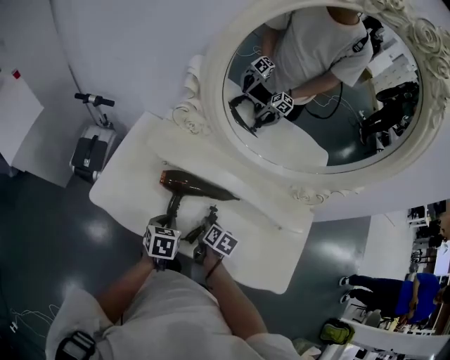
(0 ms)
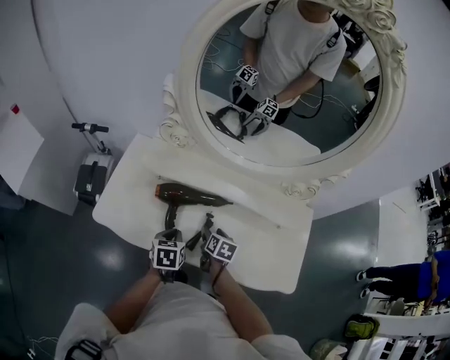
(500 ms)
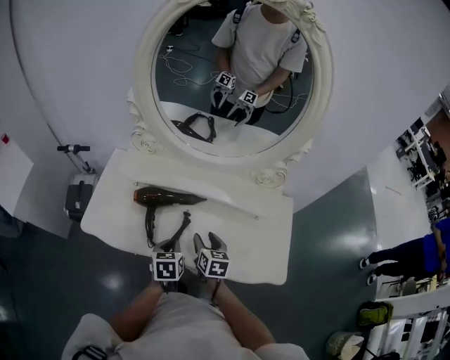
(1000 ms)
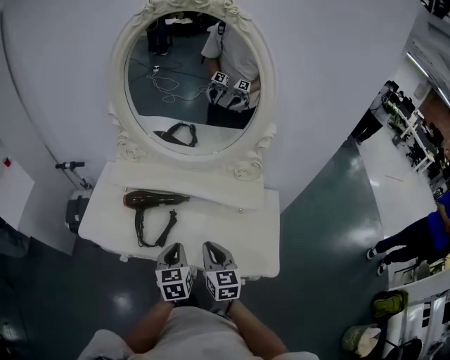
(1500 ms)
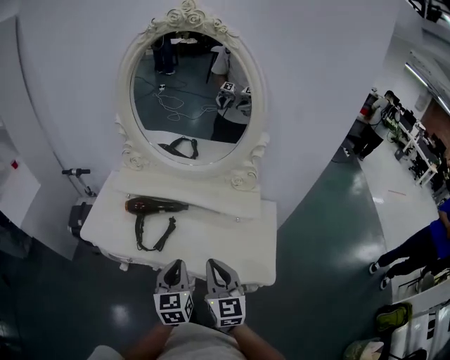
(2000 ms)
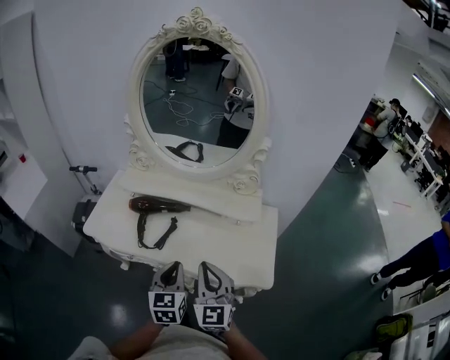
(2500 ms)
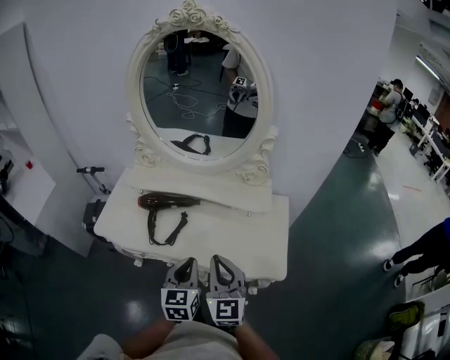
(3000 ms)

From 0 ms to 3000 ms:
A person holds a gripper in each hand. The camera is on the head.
From 0 ms to 1500 ms: The left gripper goes roughly 25 cm to the right, upward and backward, and turns by some 30 degrees; the right gripper travels upward, backward and to the right by about 30 cm, tips its fingers upward by about 30 degrees, and closes.
From 1500 ms to 3000 ms: The left gripper heads backward and upward, covering approximately 10 cm; the right gripper travels upward and backward by approximately 15 cm, and turns by roughly 30 degrees.

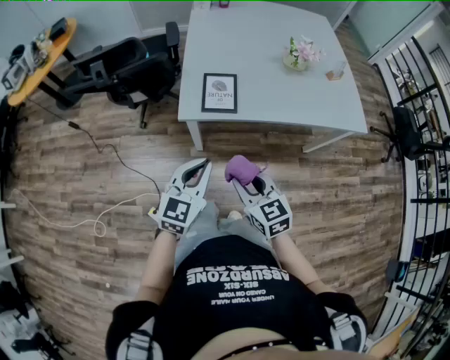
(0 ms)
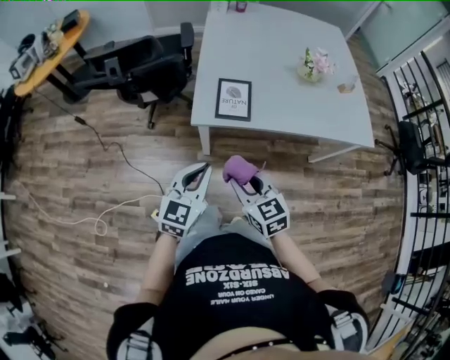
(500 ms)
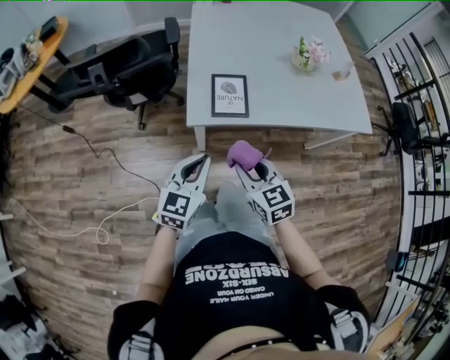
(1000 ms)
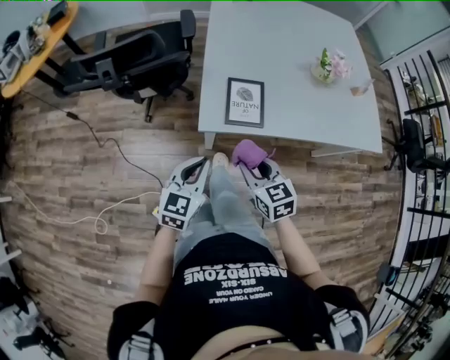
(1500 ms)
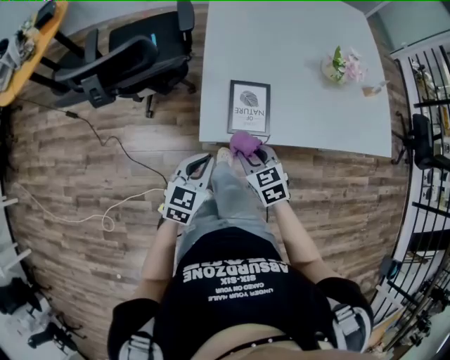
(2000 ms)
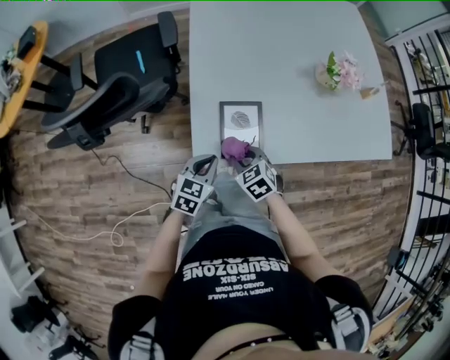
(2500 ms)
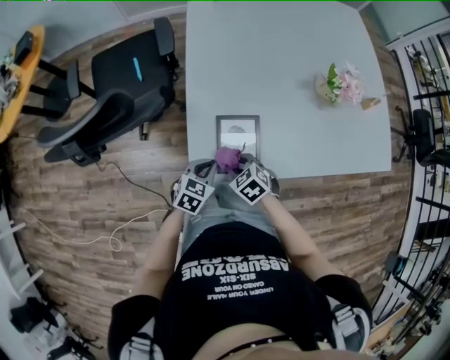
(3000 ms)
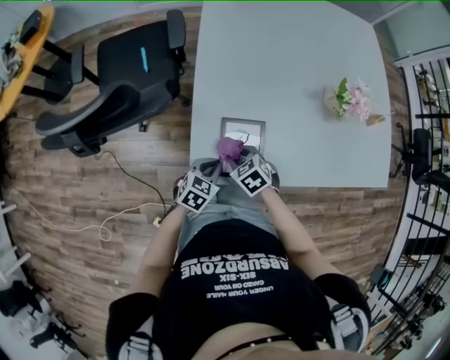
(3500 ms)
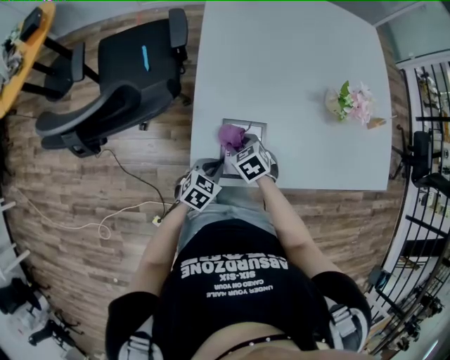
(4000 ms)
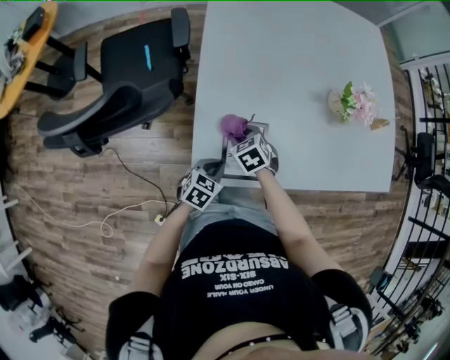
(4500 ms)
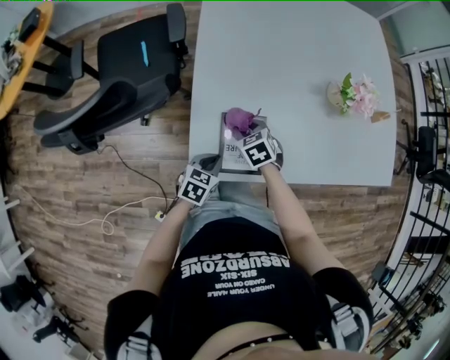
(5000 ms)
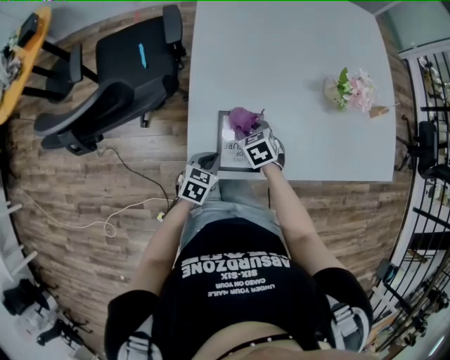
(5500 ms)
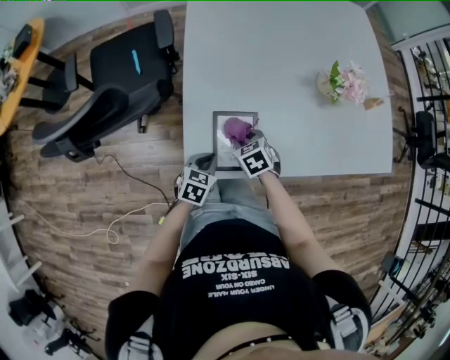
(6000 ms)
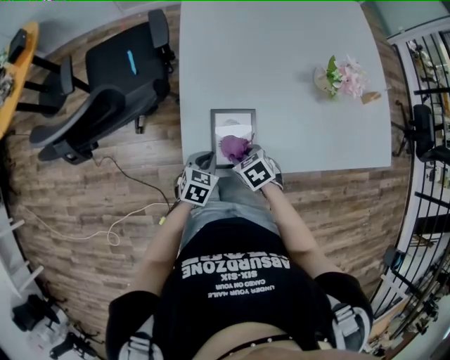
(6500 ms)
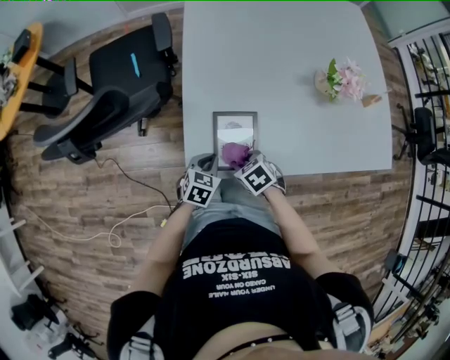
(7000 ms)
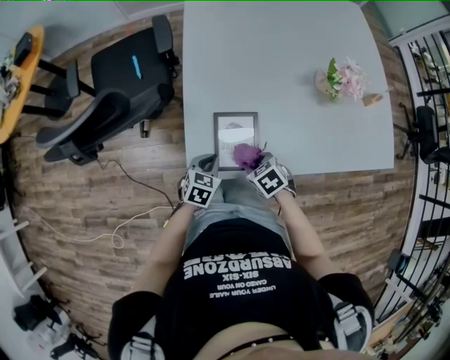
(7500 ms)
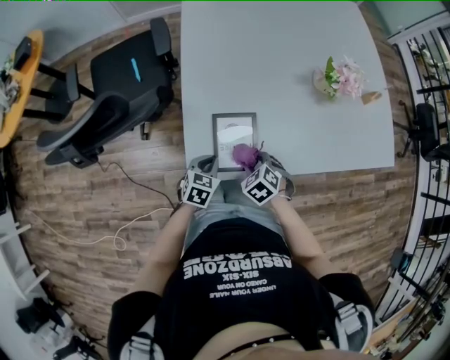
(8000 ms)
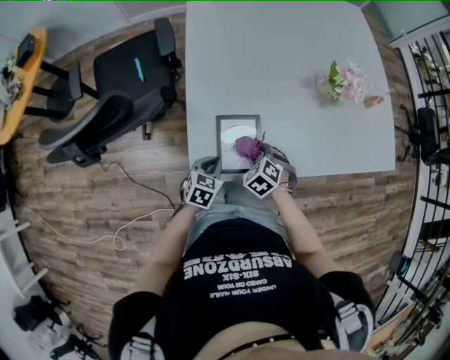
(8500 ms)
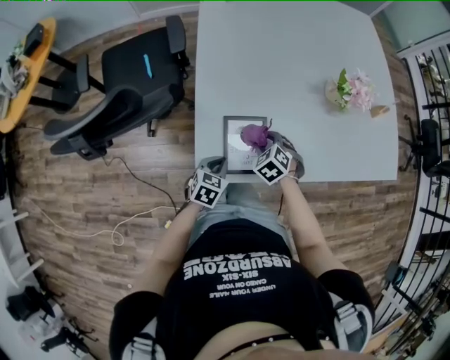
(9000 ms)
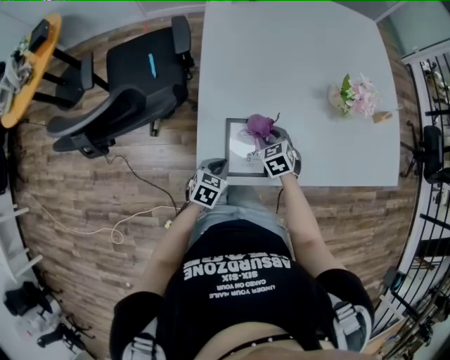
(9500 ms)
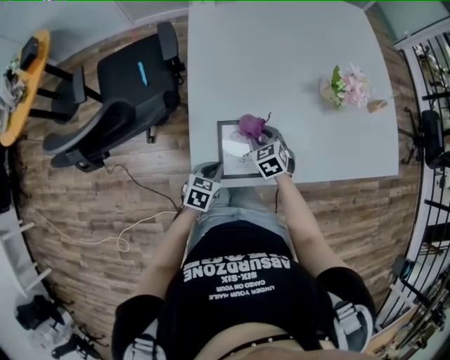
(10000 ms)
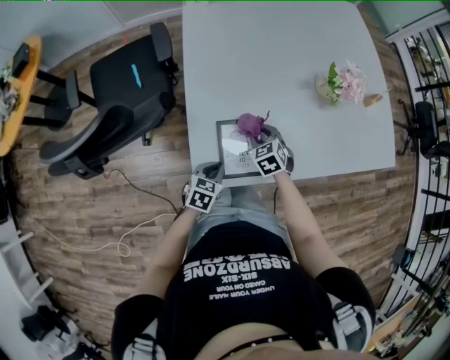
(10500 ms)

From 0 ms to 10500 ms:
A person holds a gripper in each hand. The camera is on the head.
From 0 ms to 2000 ms: The right gripper moves forward and downward, roughly 25 cm; the left gripper heads forward, downward and to the left, covering roughly 25 cm.
From 2000 ms to 4000 ms: The right gripper is displaced forward and downward by about 20 cm. Meanwhile the left gripper shifts roughly 20 cm downward, forward and to the right, and rotates about 20 degrees.
From 4000 ms to 6500 ms: The right gripper goes some 5 cm backward.
From 6500 ms to 8500 ms: The right gripper swivels some 30 degrees.
From 8500 ms to 10500 ms: The right gripper moves forward, roughly 10 cm, and changes its angle by about 20 degrees.

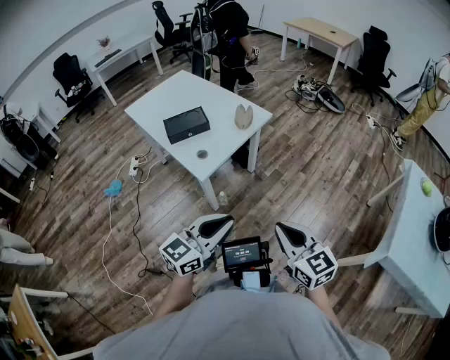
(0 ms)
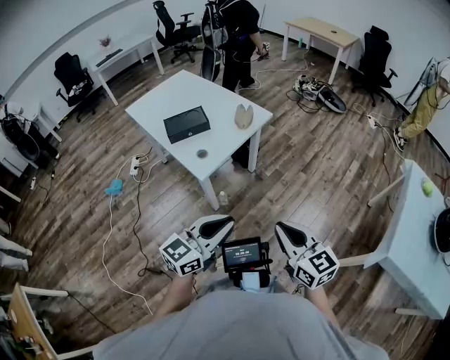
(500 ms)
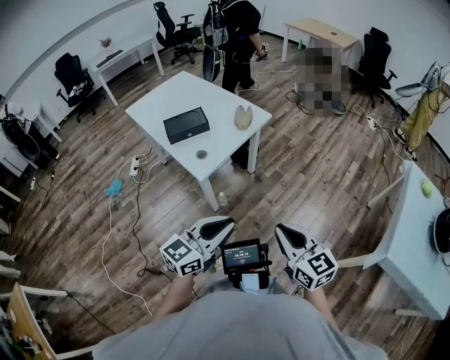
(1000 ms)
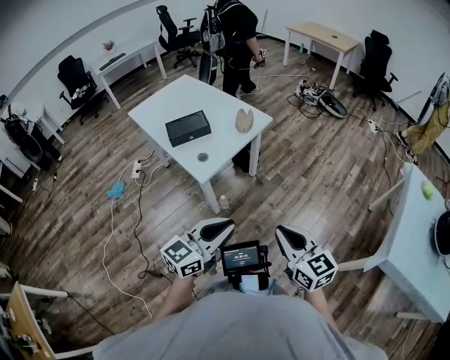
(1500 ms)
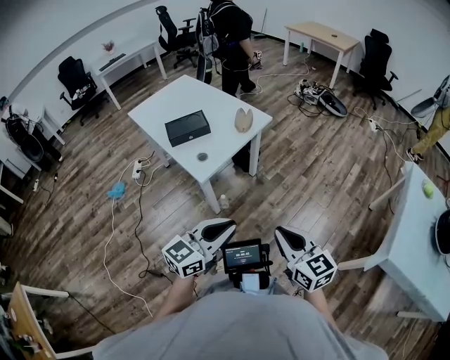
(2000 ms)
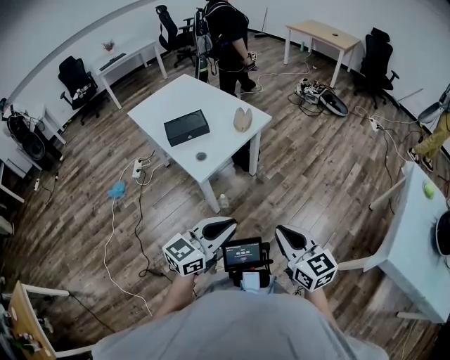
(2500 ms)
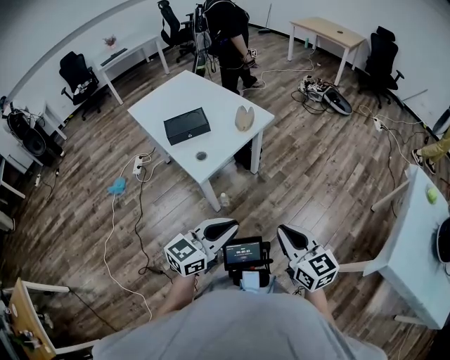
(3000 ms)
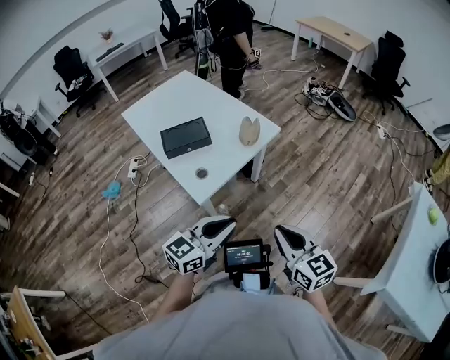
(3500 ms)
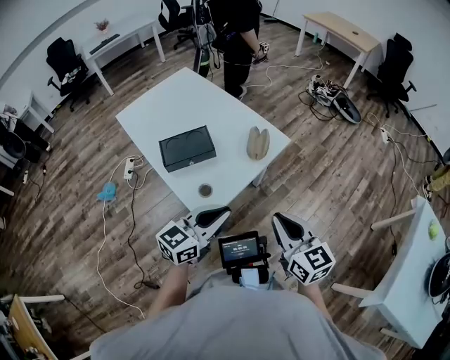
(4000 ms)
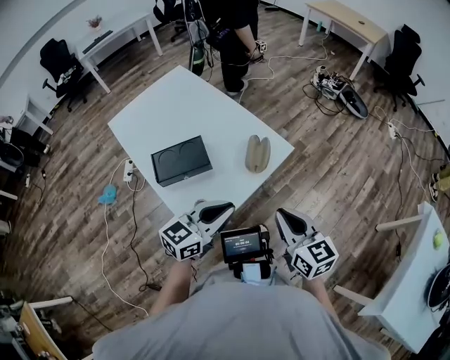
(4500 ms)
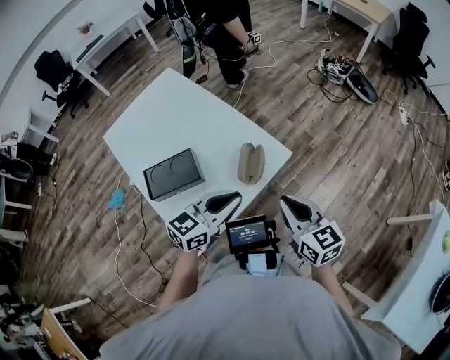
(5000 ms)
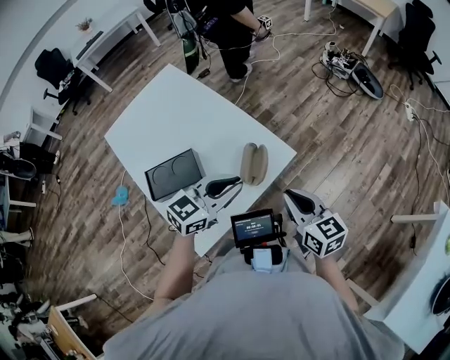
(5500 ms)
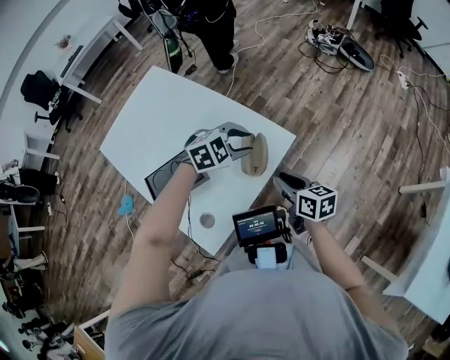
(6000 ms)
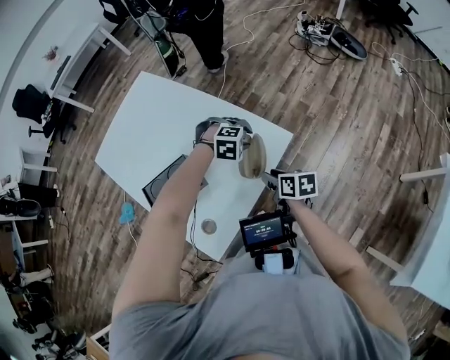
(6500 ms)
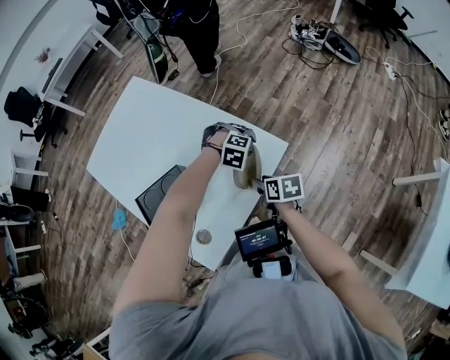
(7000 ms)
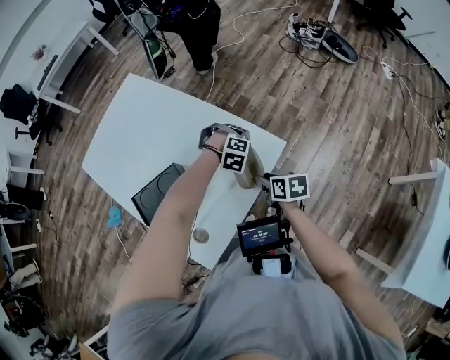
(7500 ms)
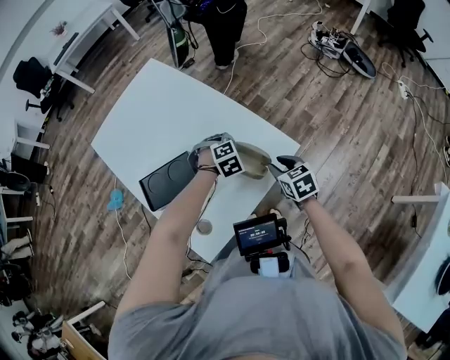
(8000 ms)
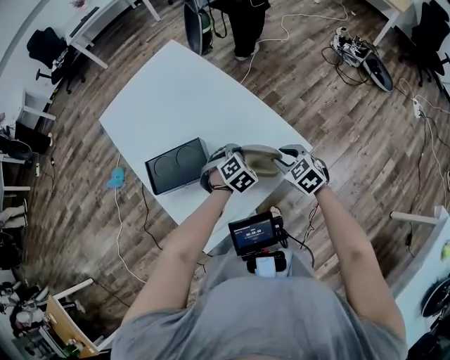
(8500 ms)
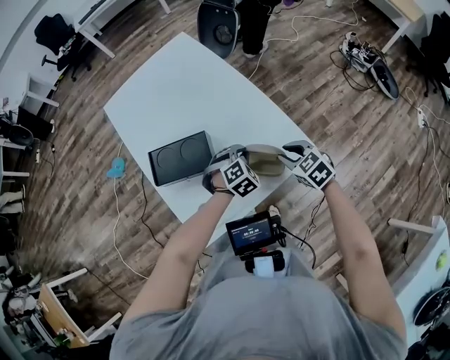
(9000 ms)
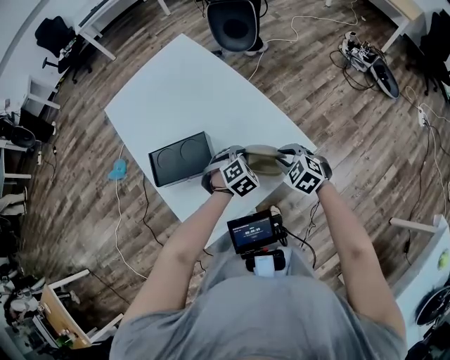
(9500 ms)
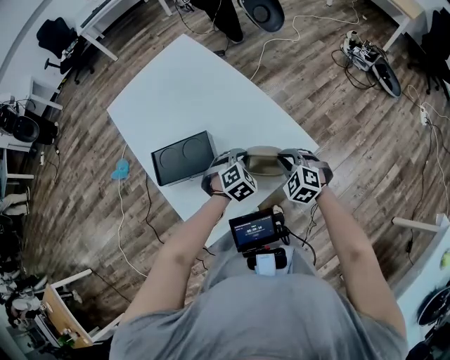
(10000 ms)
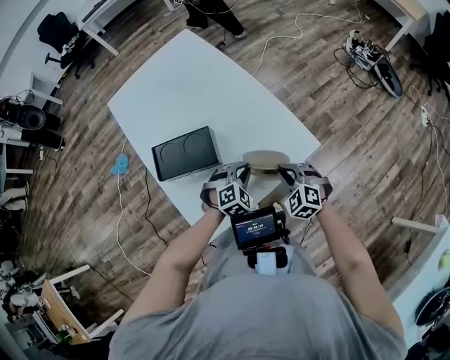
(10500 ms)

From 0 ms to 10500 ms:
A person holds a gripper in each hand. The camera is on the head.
From 0 ms to 2000 ms: There are only small adjustments of the grippers.
From 2000 ms to 4000 ms: The left gripper moves forward and to the left, some 30 cm, while the right gripper goes some 25 cm forward.
From 4000 ms to 6500 ms: The grippers both shift forward and downward by some 40 cm. The right gripper turns by about 50 degrees, and opens its fingers. The left gripper tips its fingers downward by about 70 degrees, and opens.
From 6500 ms to 8500 ms: The right gripper changes place by about 10 cm, and twists about 70 degrees counterclockwise, seen from behind; the left gripper ends up roughly 10 cm from where it was, rolls counterclockwise, seen from behind, by roughly 50 degrees, and closes.
From 8500 ms to 10500 ms: The two grippers go some 10 cm backward. The right gripper turns by about 30 degrees.

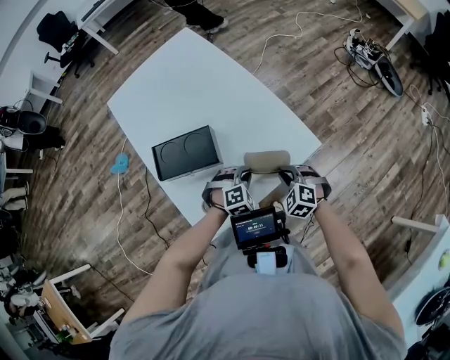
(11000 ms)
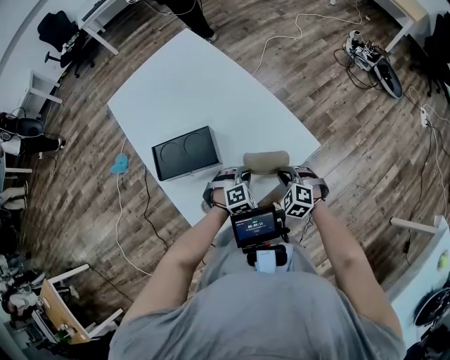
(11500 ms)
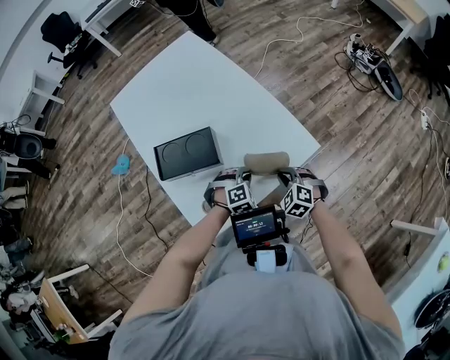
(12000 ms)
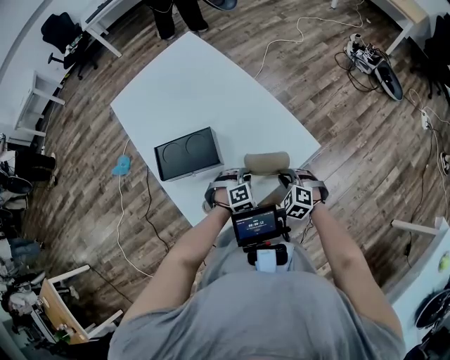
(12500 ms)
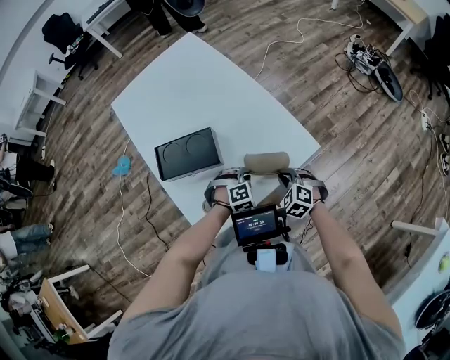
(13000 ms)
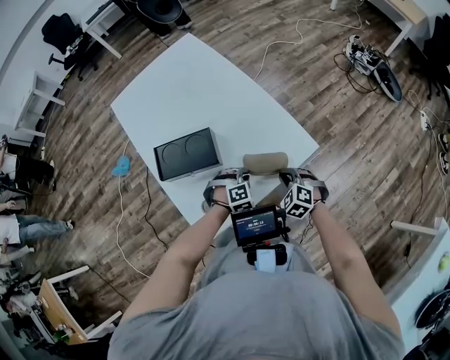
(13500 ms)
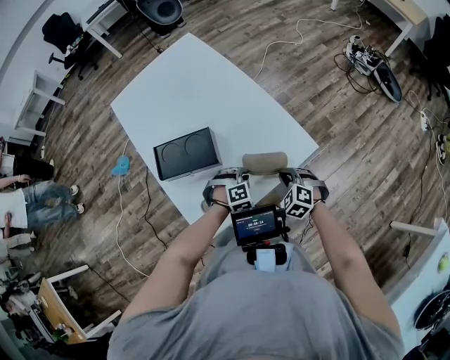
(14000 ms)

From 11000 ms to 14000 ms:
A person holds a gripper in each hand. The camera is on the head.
From 11000 ms to 14000 ms: The grippers stay close to where they were, moving slightly.
